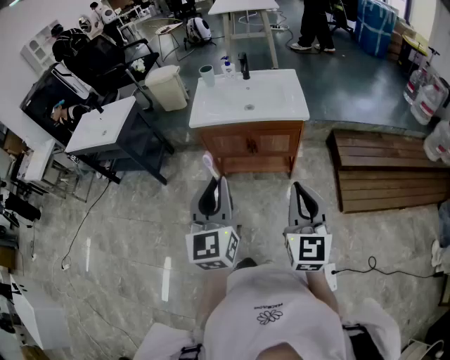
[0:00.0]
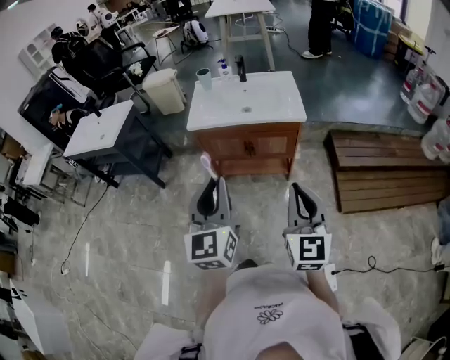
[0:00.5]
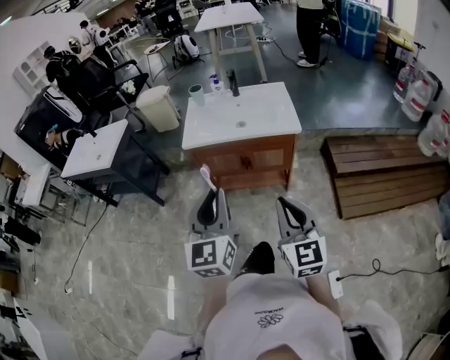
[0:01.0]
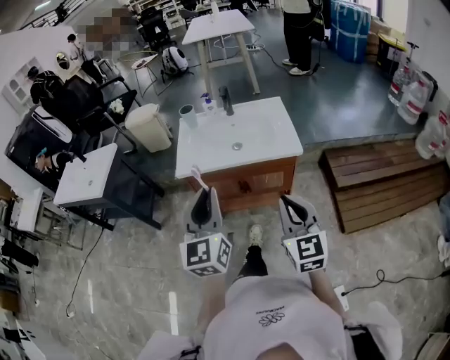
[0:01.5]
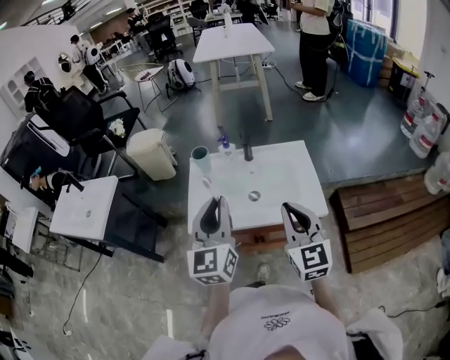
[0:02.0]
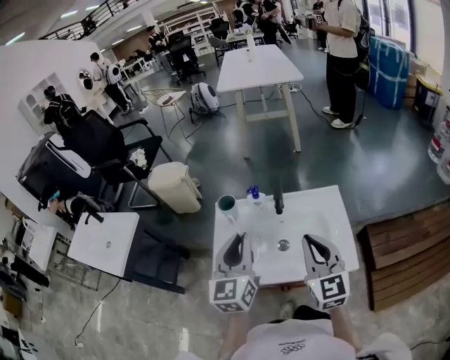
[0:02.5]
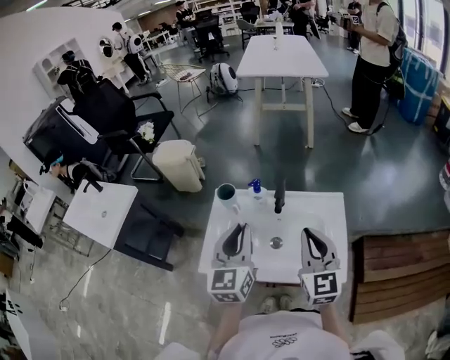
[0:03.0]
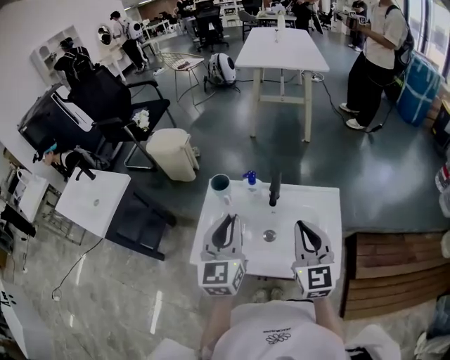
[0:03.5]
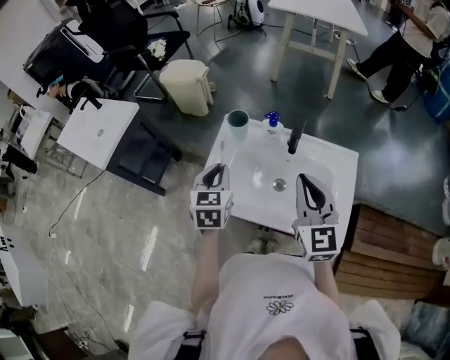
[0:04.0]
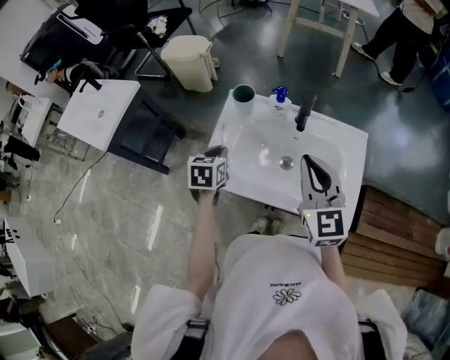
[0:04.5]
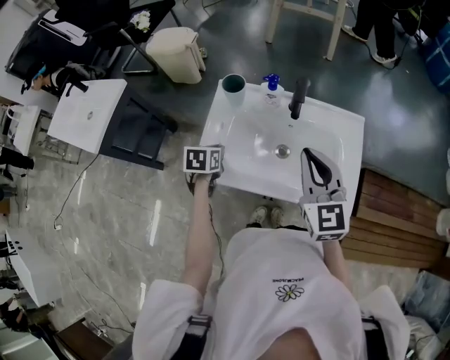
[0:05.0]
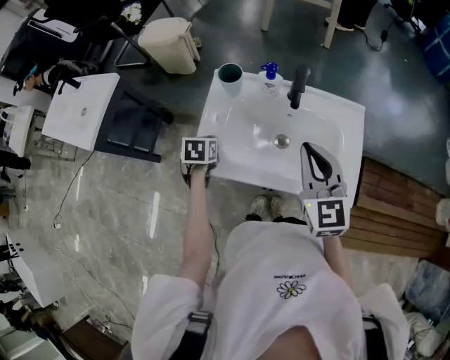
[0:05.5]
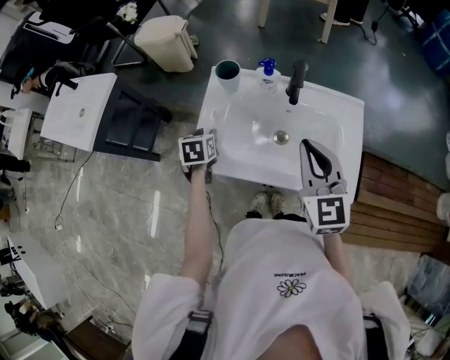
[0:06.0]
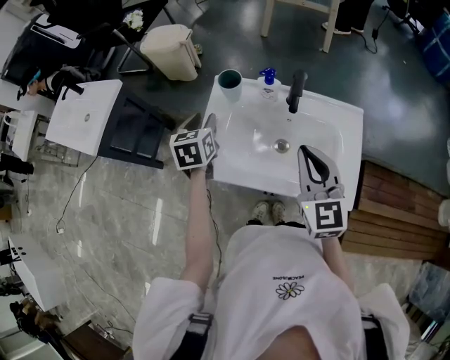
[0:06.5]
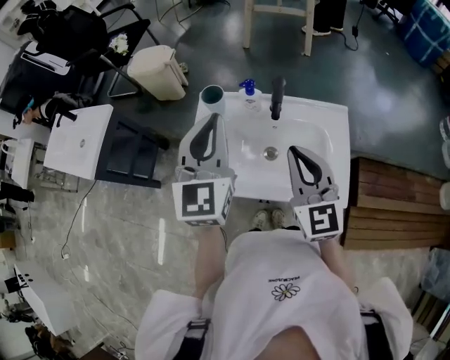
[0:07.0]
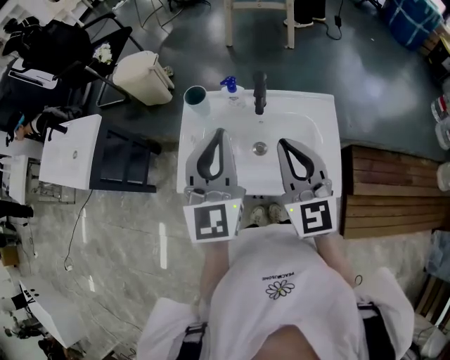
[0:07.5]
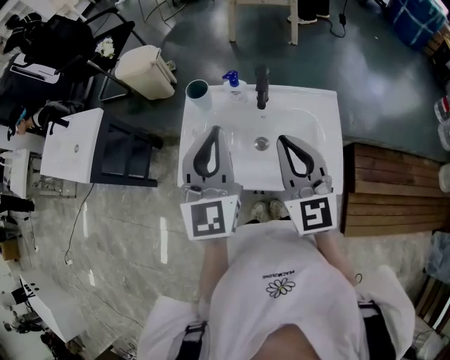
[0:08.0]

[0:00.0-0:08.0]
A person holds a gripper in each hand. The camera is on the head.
0:00.0 to 0:02.0: The two grippers travel together, forward, approximately 40 cm.
0:02.0 to 0:04.0: The right gripper is displaced forward by roughly 20 cm. Meanwhile the left gripper goes some 25 cm forward, downward and to the left, and tips its fingers downward by approximately 30 degrees.
0:04.0 to 0:06.0: The left gripper moves downward, roughly 15 cm, changes its angle by roughly 20 degrees, and opens up.
0:06.0 to 0:08.0: The left gripper is displaced upward and to the right by about 35 cm, tilts its fingers about 50 degrees upward, and closes its fingers; the right gripper moves upward, some 5 cm.

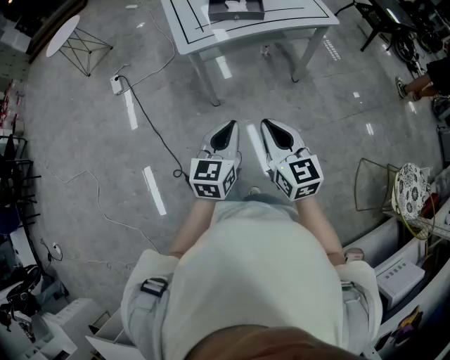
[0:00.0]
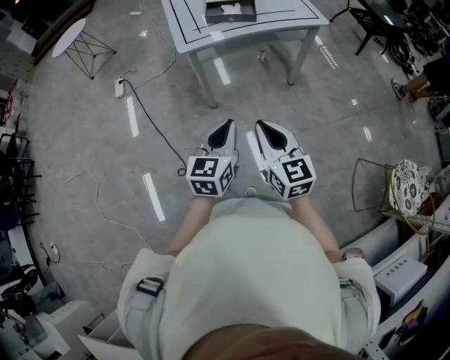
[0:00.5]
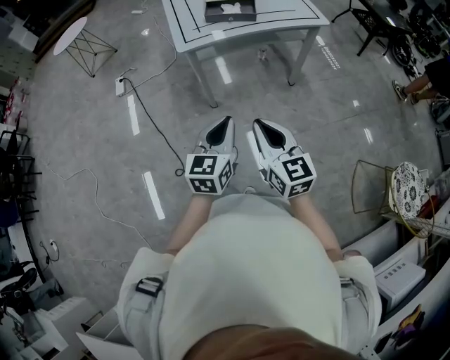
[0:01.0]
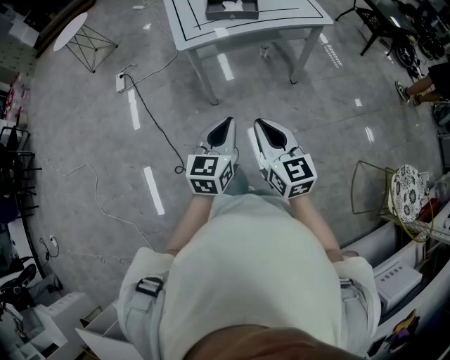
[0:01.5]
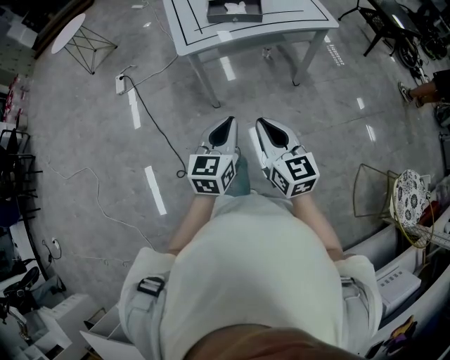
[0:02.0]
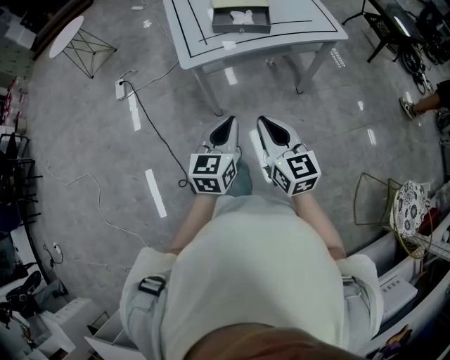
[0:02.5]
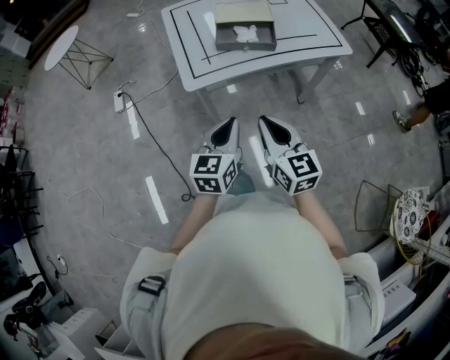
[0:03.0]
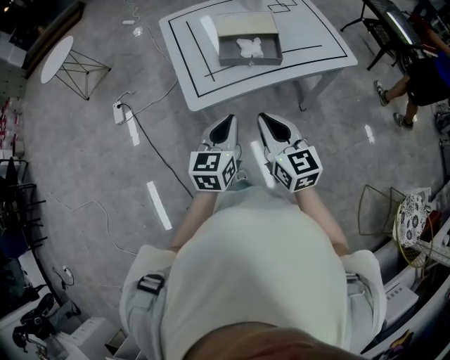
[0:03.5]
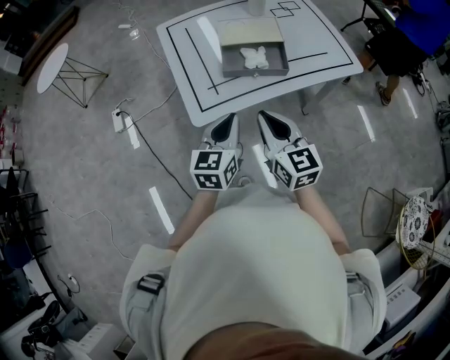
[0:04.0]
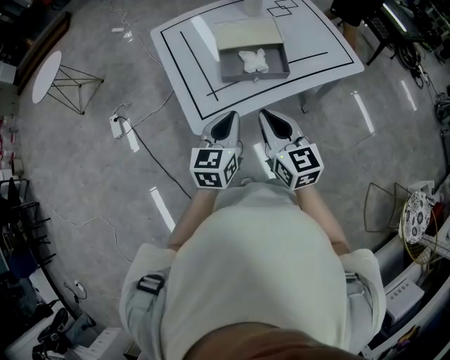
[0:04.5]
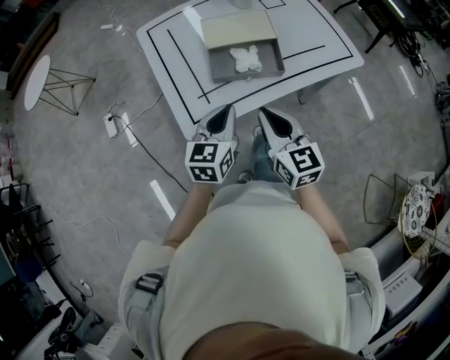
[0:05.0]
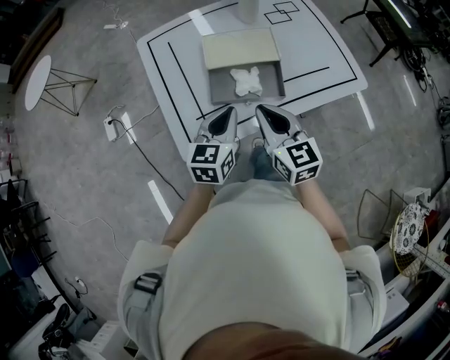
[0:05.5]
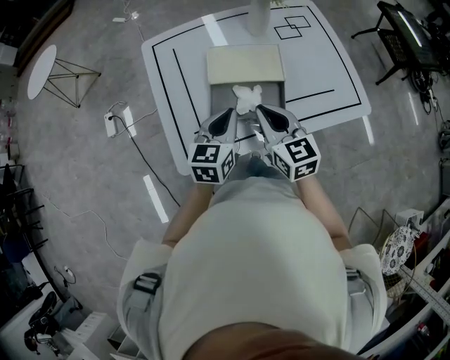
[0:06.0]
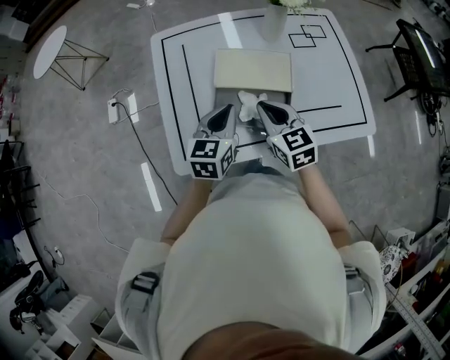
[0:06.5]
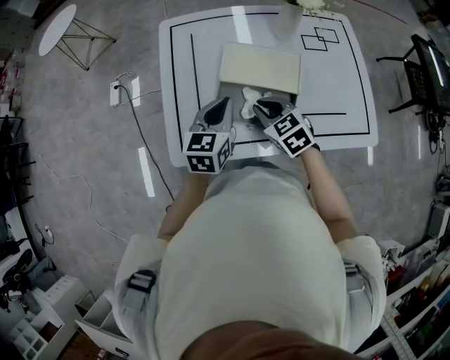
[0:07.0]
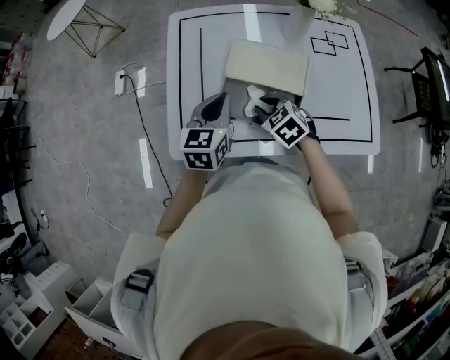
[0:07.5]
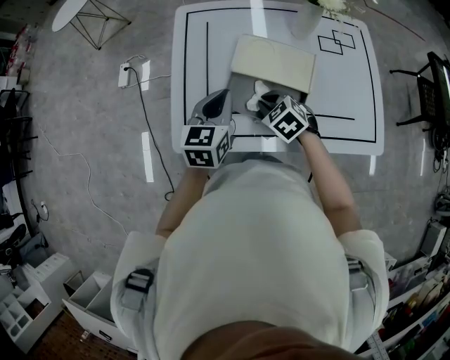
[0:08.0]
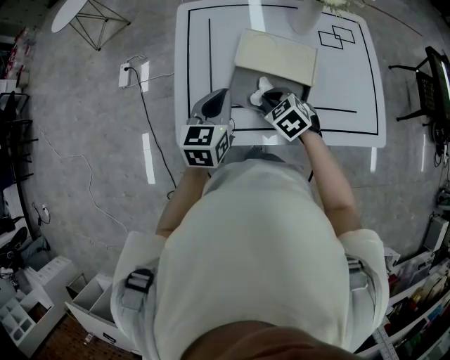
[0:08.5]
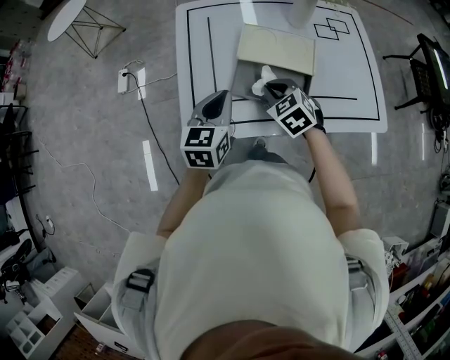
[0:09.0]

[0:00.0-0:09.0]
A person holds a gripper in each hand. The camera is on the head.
0:02.0 to 0:04.5: The grippers both shift forward by roughly 35 cm.
0:04.5 to 0:07.0: The right gripper moves roughly 25 cm, and tilts its fingers approximately 30 degrees downward. Meanwhile the left gripper ends up approximately 20 cm from where it was.
0:07.0 to 0:09.0: The left gripper shifts roughly 5 cm to the left.

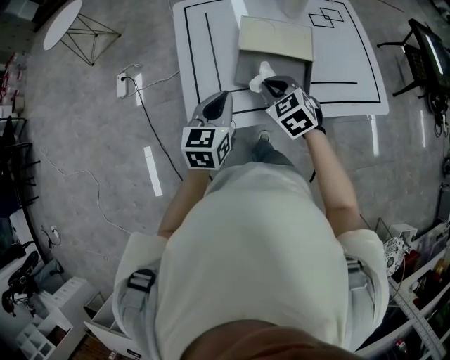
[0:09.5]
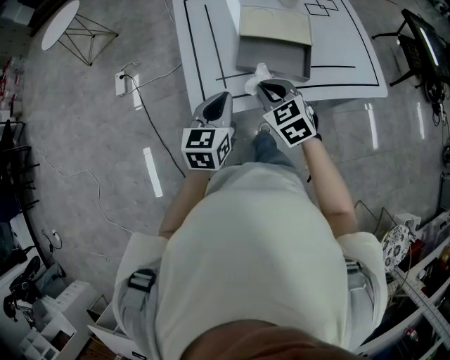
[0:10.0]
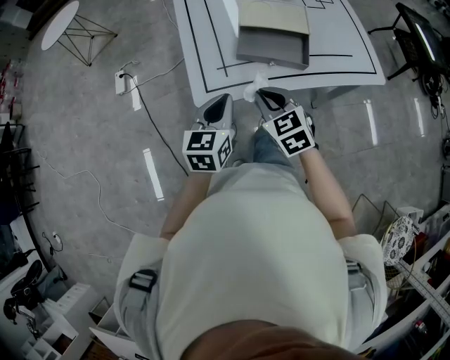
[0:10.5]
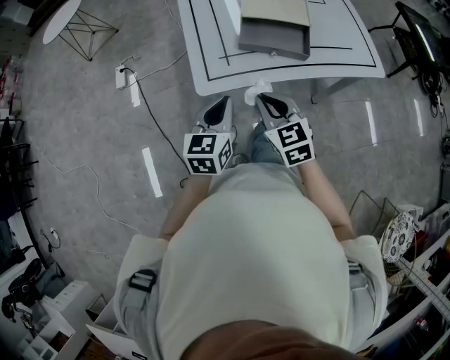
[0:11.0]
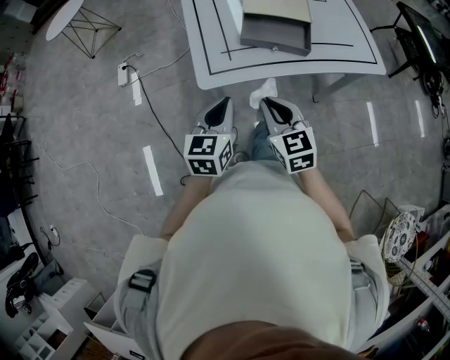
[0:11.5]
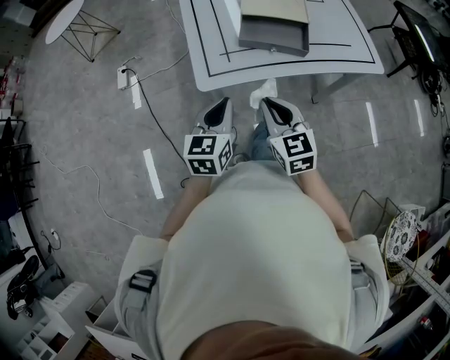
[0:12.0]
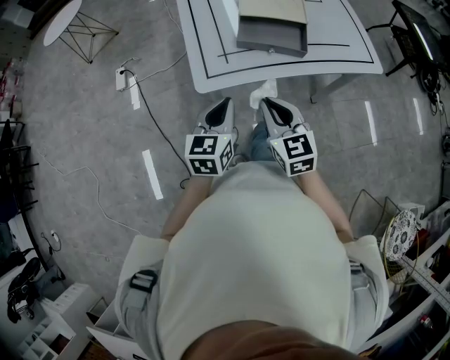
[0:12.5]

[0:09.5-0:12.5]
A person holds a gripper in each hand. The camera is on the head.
0:09.5 to 0:11.0: The two grippers go approximately 15 cm backward. The right gripper swivels about 20 degrees.
0:11.0 to 0:12.5: The grippers make only small movements.

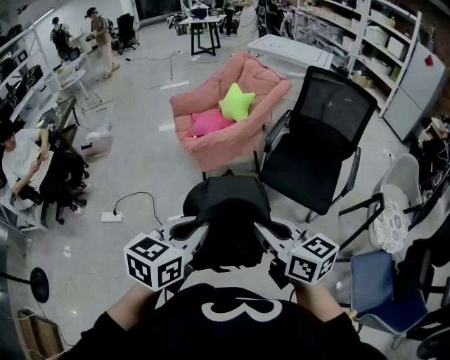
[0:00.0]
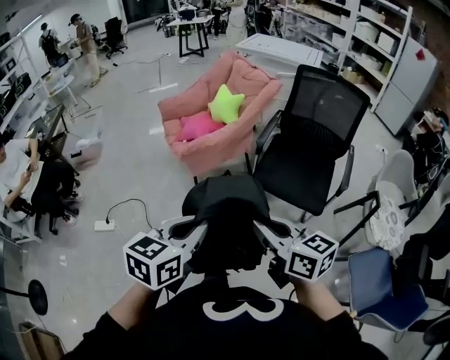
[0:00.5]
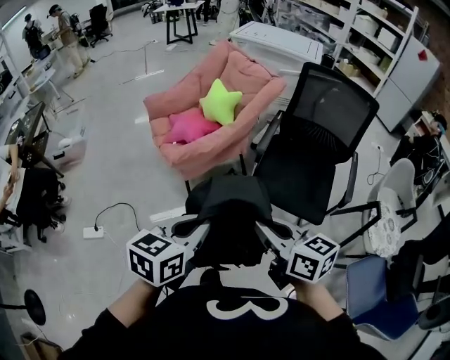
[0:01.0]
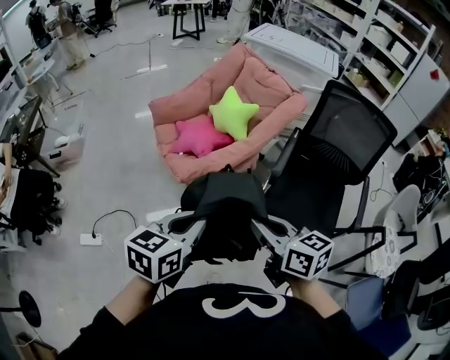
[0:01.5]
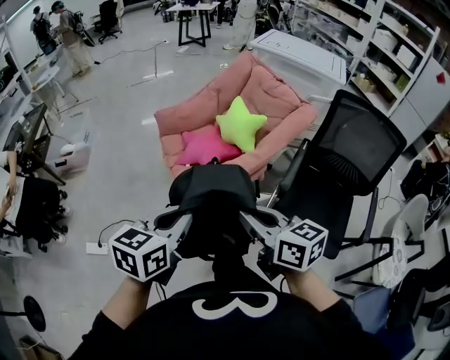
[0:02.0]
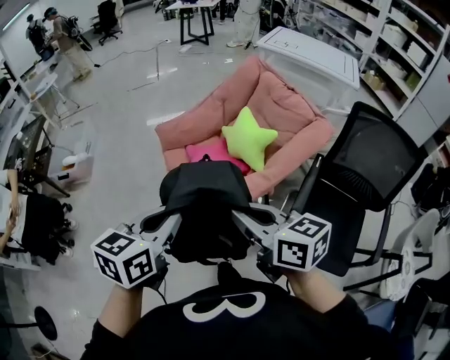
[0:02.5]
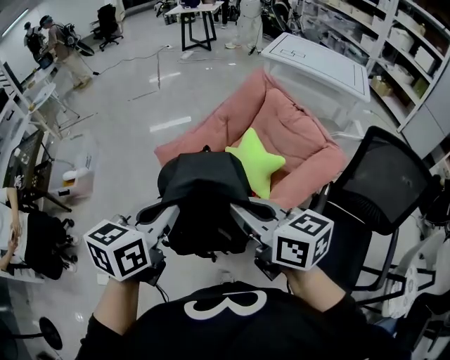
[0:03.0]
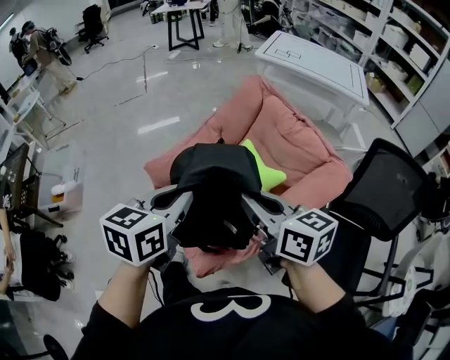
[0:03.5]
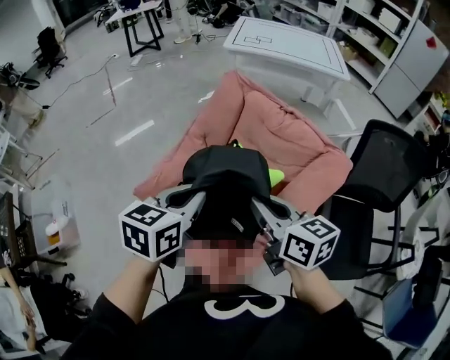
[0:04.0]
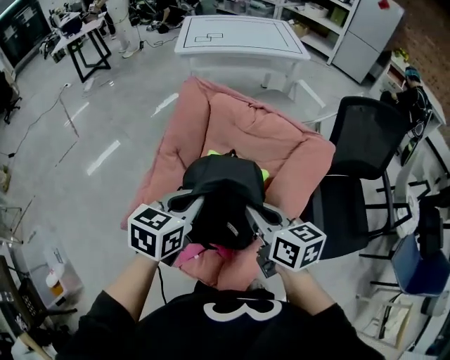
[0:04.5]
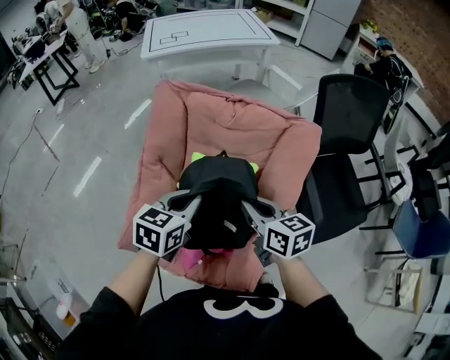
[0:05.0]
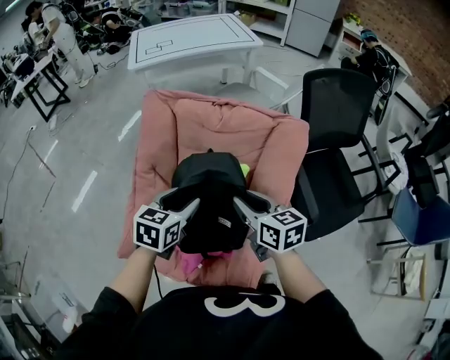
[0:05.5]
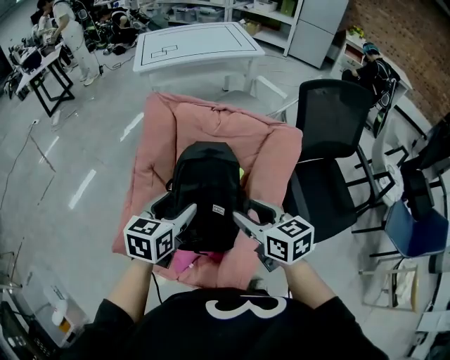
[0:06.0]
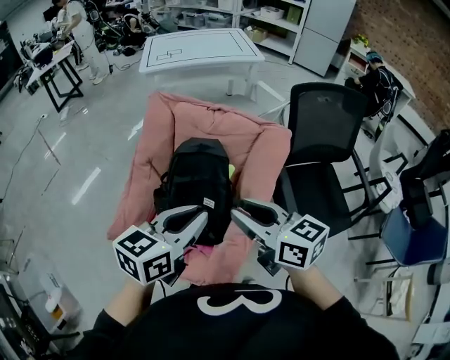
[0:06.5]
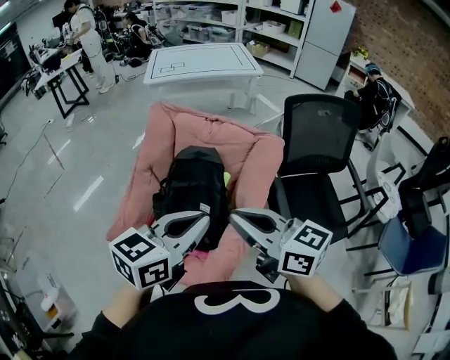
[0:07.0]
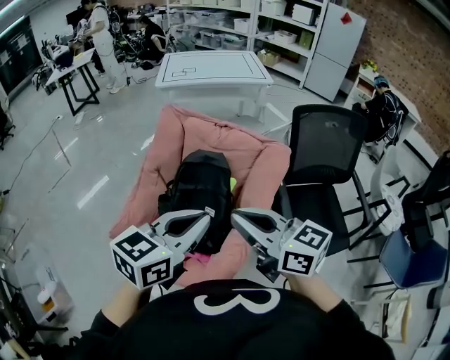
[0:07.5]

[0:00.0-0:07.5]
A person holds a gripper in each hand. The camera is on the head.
0:00.0 to 0:02.0: The pair of grippers is taken forward, some 40 cm.
0:02.0 to 0:04.0: Both grippers are carried roughly 50 cm. The right gripper rotates some 20 degrees.
0:04.0 to 0:05.5: Both grippers travel together downward, about 10 cm. The left gripper changes its angle by approximately 30 degrees, and opens its fingers. The right gripper turns by roughly 30 degrees, and opens up.
0:05.5 to 0:07.5: The left gripper heads upward, backward and to the right, covering roughly 30 cm, rotates approximately 20 degrees, and closes, while the right gripper moves upward and backward, about 25 cm, swivels roughly 30 degrees, and closes up.
